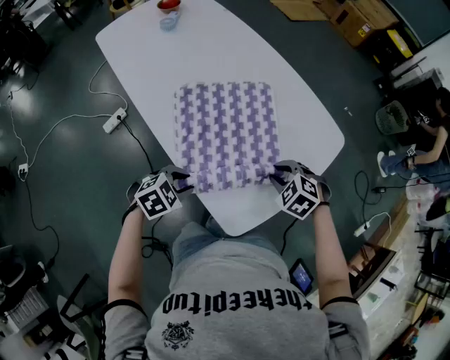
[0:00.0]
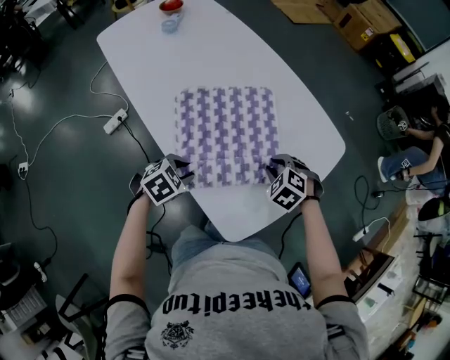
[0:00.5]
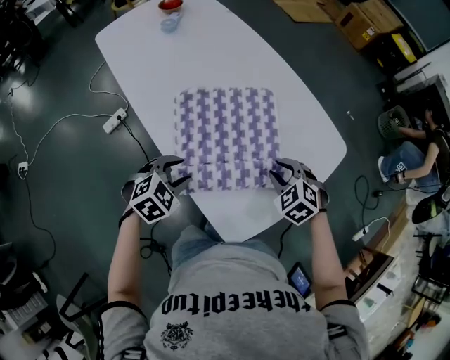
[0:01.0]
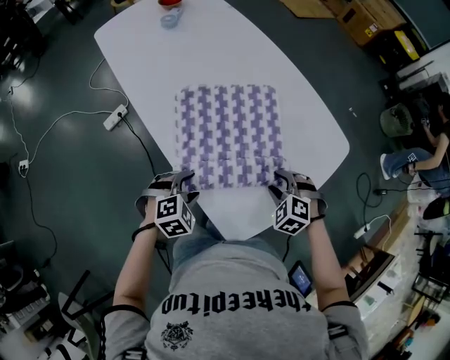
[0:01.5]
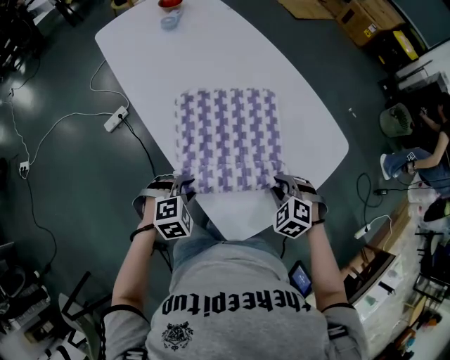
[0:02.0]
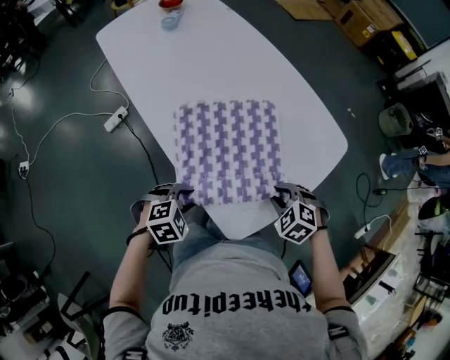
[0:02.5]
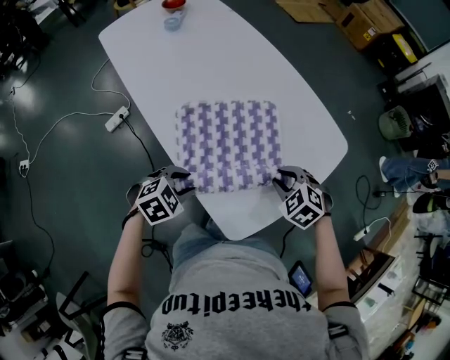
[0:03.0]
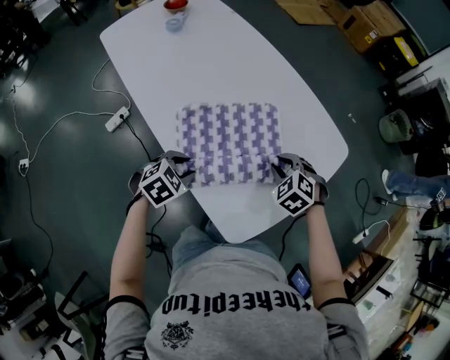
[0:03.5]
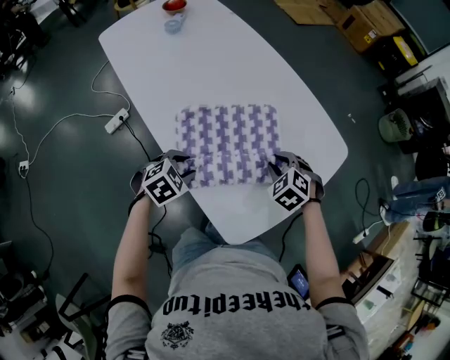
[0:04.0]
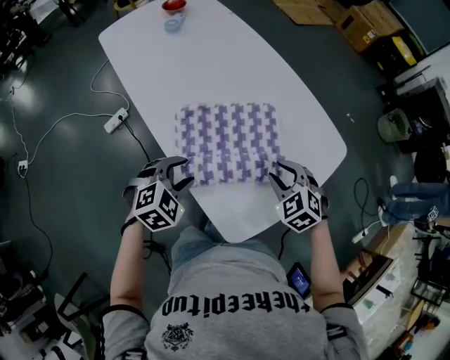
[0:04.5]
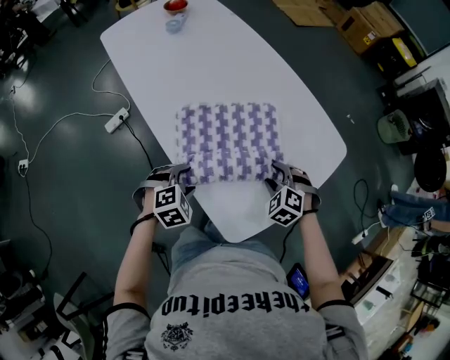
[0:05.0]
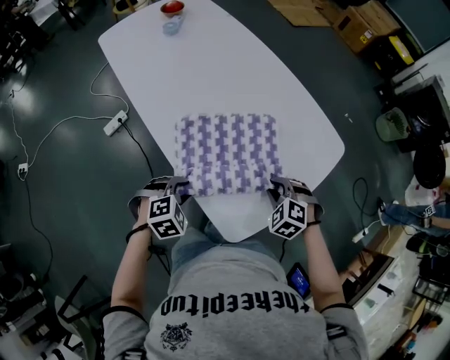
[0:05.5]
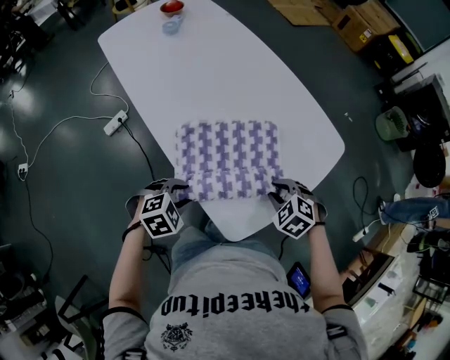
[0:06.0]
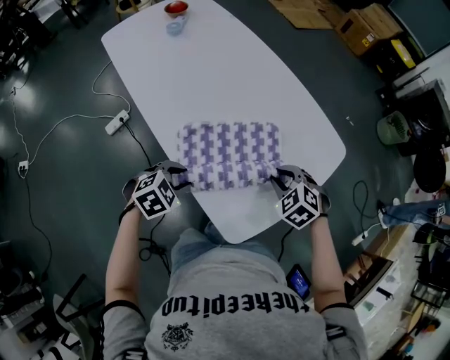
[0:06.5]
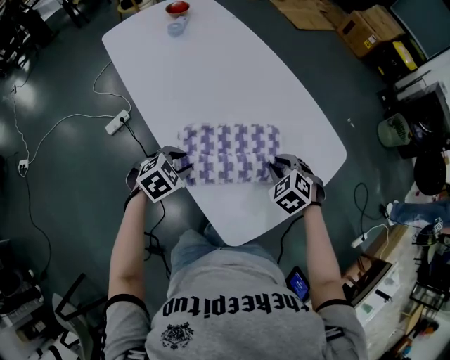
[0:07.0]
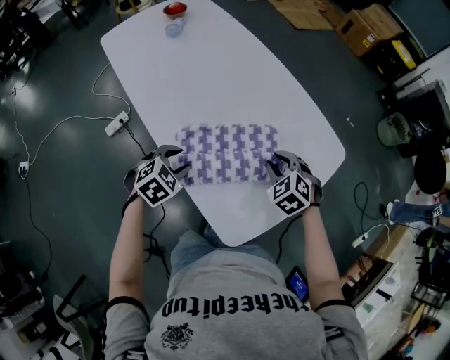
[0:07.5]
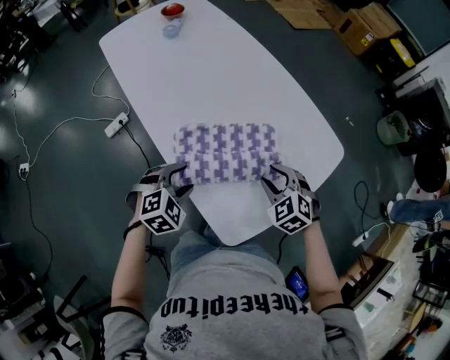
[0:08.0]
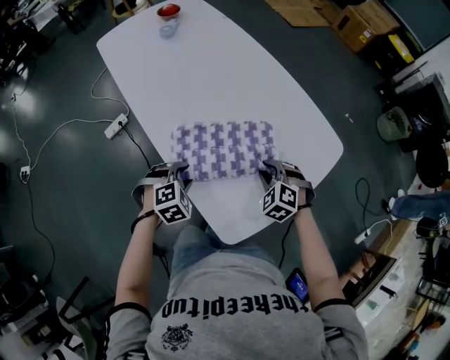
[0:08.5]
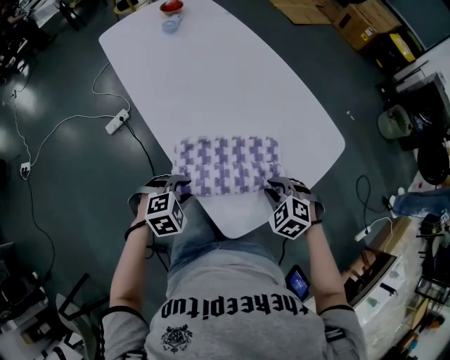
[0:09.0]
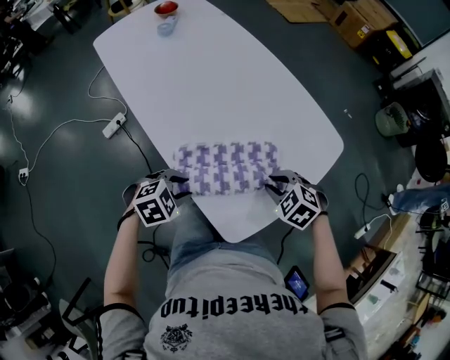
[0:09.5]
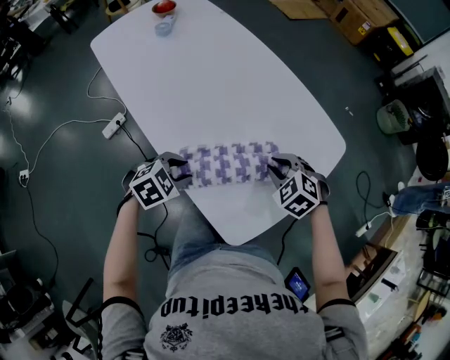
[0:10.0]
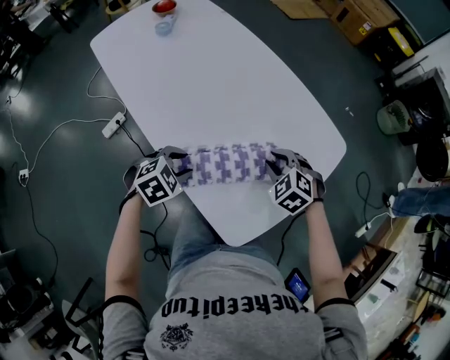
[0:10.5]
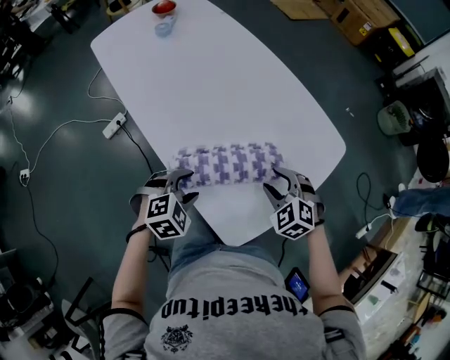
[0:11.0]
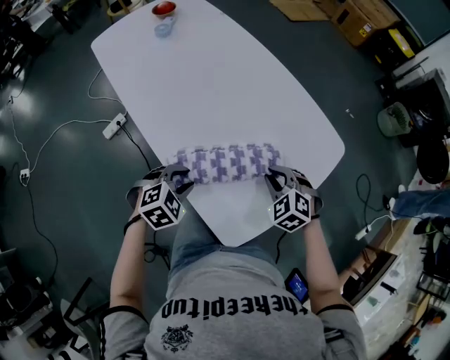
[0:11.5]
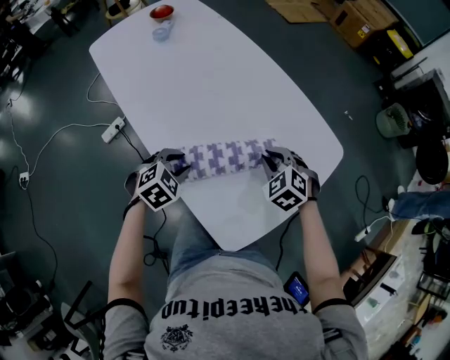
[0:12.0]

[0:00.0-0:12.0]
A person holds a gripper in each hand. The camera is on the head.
0:00.0 to 0:02.0: The left gripper swivels approximately 20 degrees.
0:02.0 to 0:04.0: Both grippers travel together forward, some 5 cm. The left gripper swivels roughly 20 degrees.
0:04.0 to 0:06.0: Both grippers move backward, approximately 10 cm. The left gripper opens, then closes again; the right gripper opens, then closes once more.
0:06.0 to 0:08.0: The grippers both shift forward by approximately 5 cm.
0:08.0 to 0:10.0: The left gripper goes backward and returns, approximately 5 cm each way. The right gripper moves approximately 5 cm backward and comes back.
0:10.0 to 0:12.0: The left gripper moves forward, roughly 5 cm. The right gripper moves approximately 5 cm, and opens and closes again.

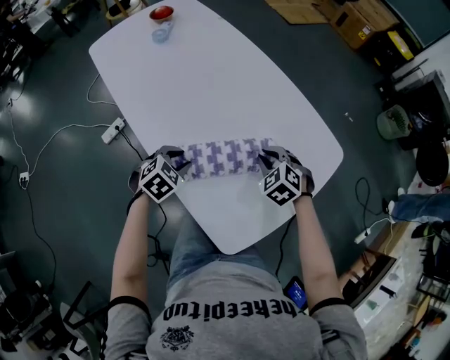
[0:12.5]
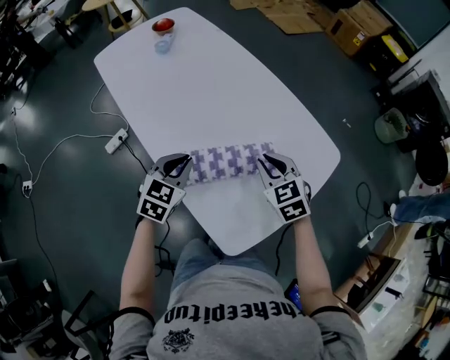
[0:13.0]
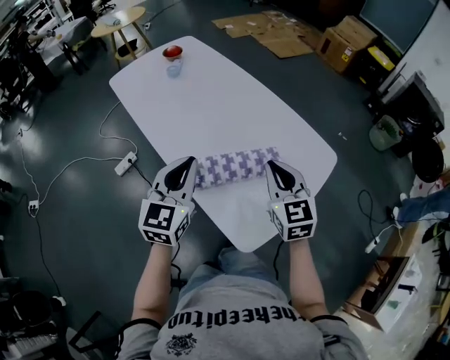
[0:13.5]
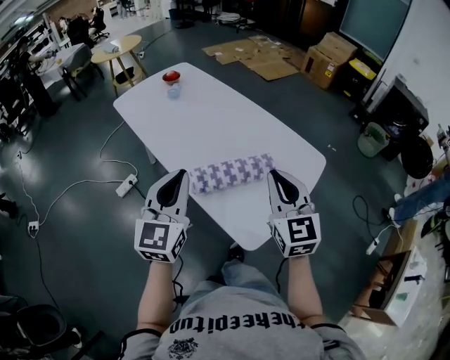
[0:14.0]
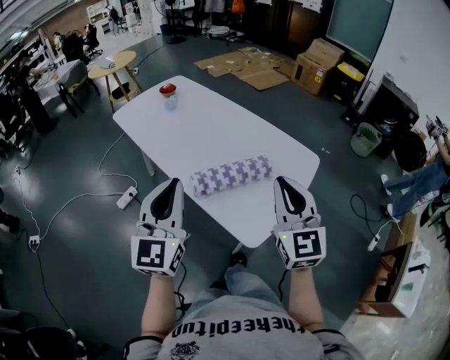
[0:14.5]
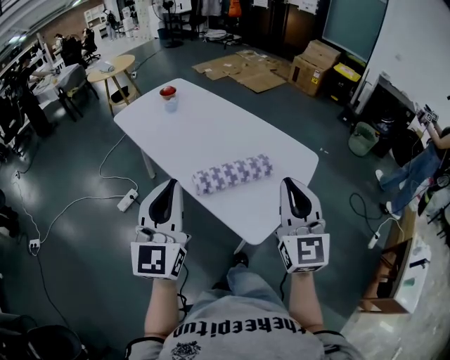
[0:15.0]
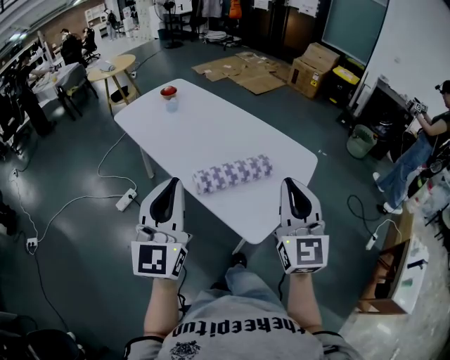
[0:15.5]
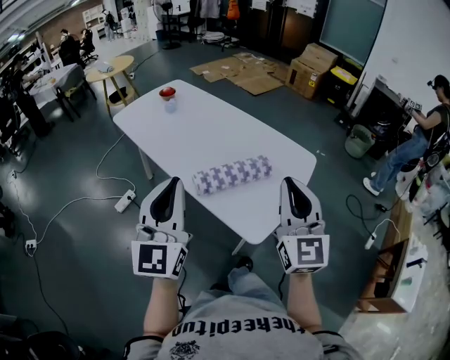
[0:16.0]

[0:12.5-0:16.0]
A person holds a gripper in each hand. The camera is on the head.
0:12.5 to 0:14.5: The two grippers go some 50 cm upward and backward. The right gripper tilts its fingers some 60 degrees upward. The left gripper tilts its fingers about 70 degrees upward, and closes.
0:14.5 to 0:16.0: The left gripper moves about 5 cm. Meanwhile the right gripper moves roughly 5 cm.

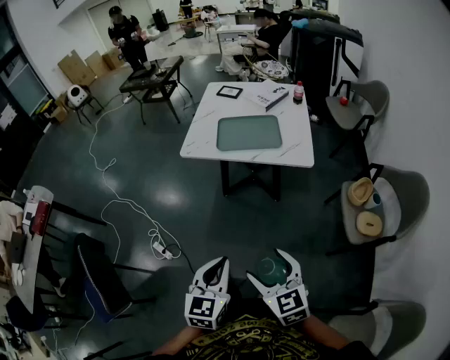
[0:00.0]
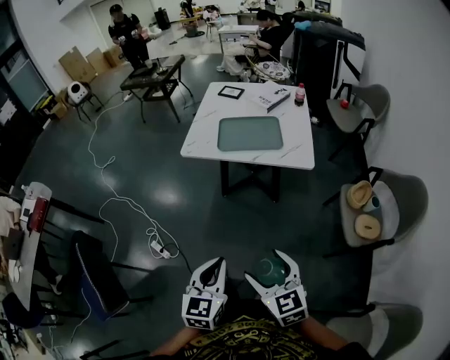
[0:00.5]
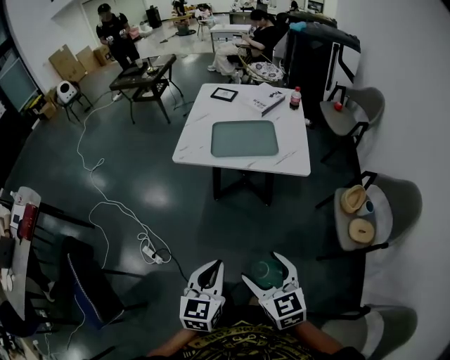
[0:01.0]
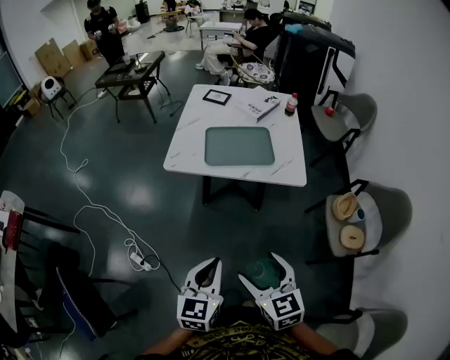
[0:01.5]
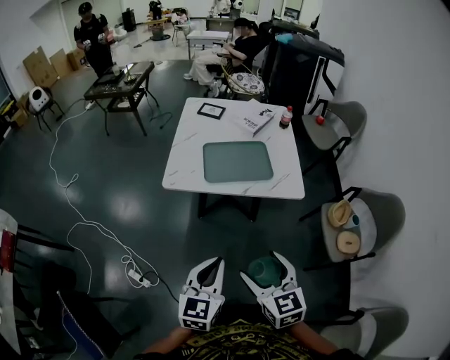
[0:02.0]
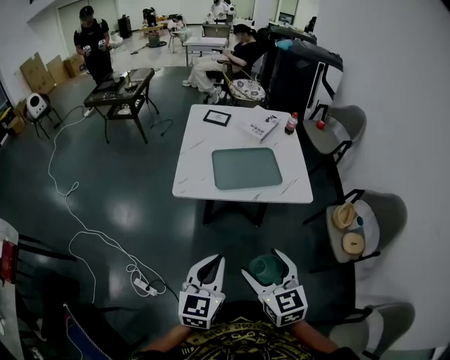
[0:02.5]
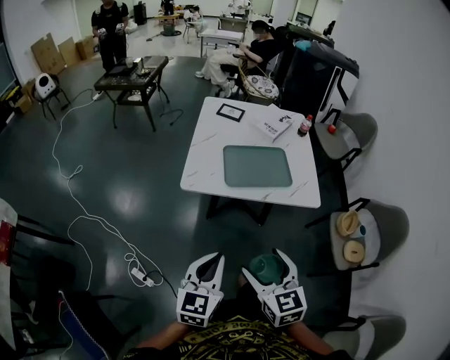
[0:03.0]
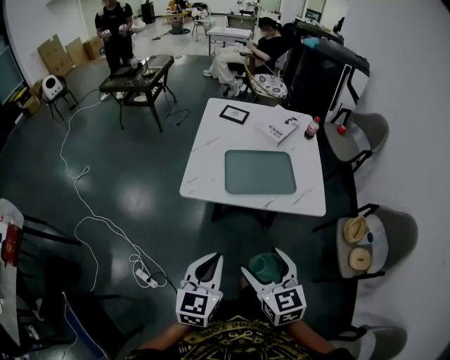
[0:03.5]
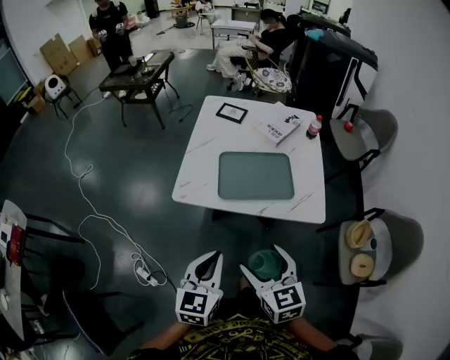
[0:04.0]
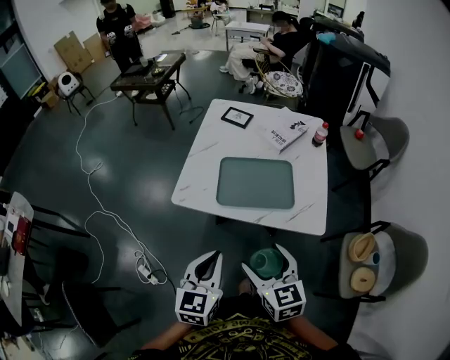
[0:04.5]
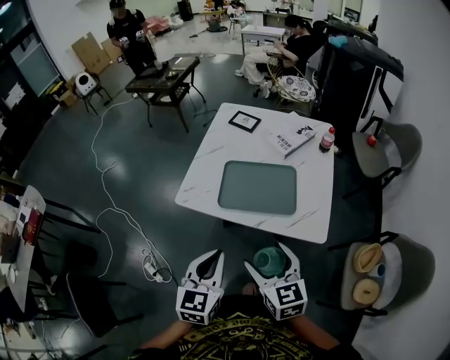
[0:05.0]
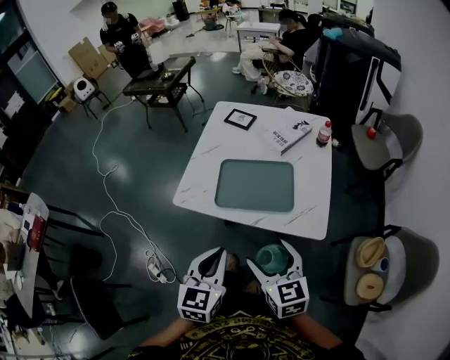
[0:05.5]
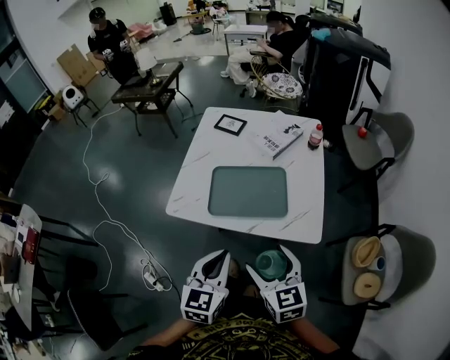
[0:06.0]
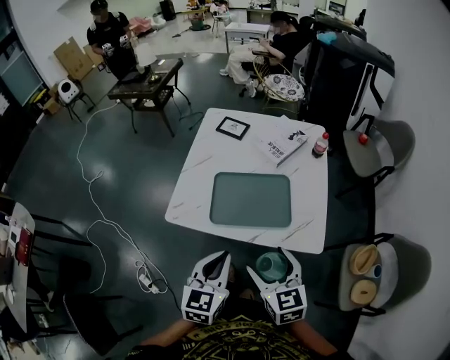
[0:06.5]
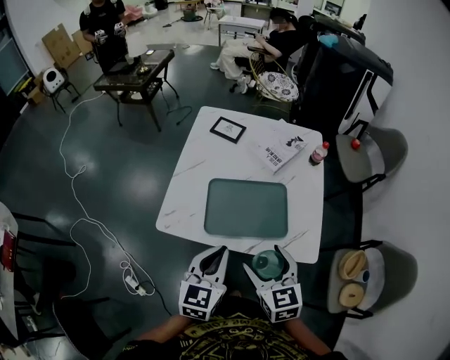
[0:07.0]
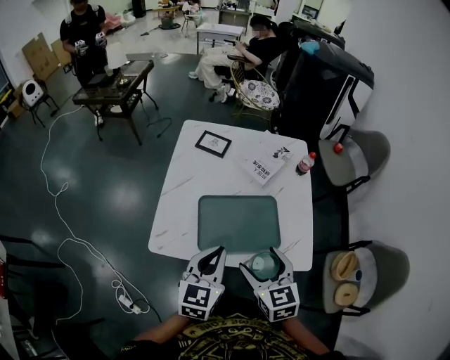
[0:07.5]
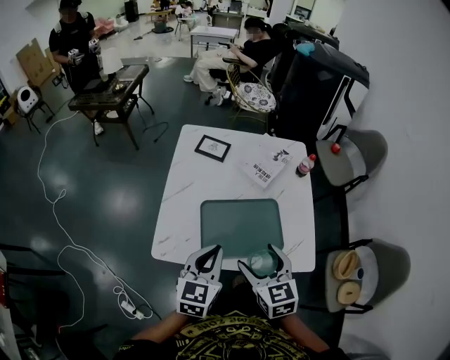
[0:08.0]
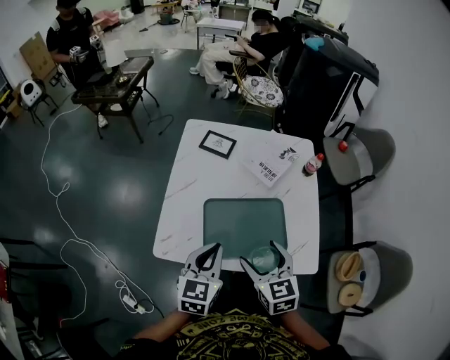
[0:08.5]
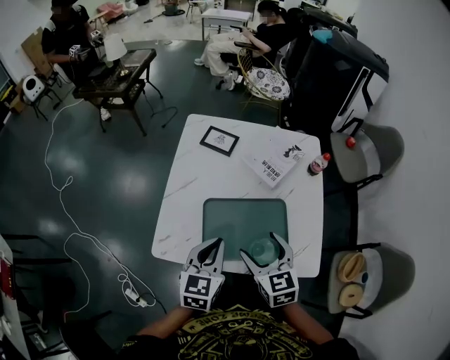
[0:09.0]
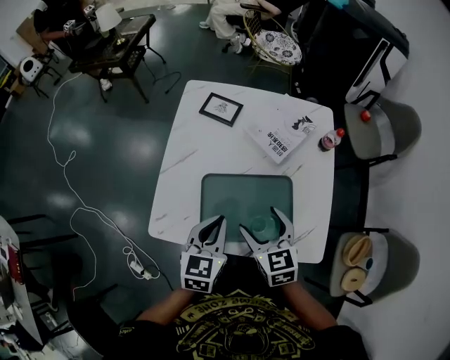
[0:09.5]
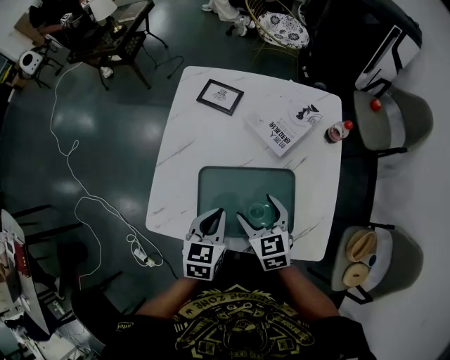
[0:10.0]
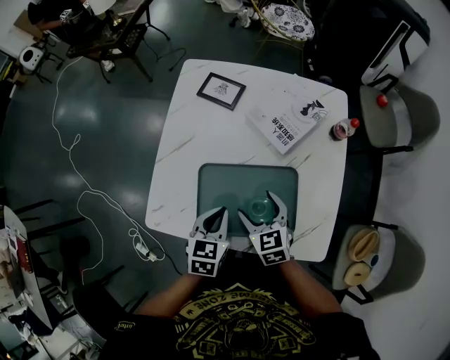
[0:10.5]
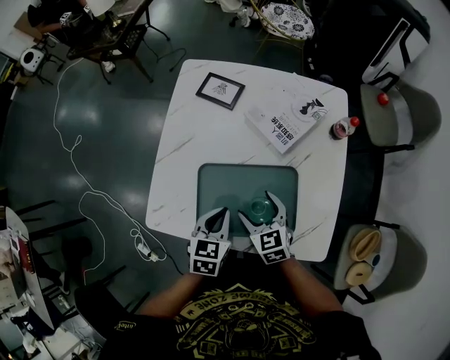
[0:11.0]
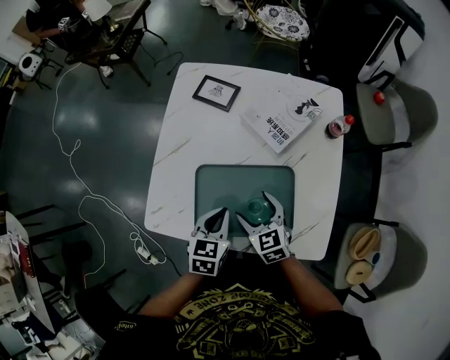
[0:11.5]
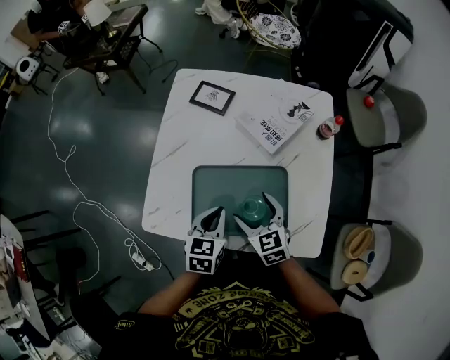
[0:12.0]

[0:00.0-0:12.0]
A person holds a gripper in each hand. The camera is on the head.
0:00.0 to 0:02.0: The two grippers go roughly 15 cm forward.
0:02.0 to 0:04.0: Both grippers move forward, about 15 cm.
0:04.0 to 0:06.0: The grippers both shift to the right and forward by roughly 15 cm.
0:06.0 to 0:08.0: The grippers both shift forward and to the left by approximately 20 cm.
0:08.0 to 0:10.0: The left gripper travels downward and forward by about 15 cm; the right gripper travels forward and downward by approximately 20 cm.
0:10.0 to 0:12.0: The grippers move only a little.
